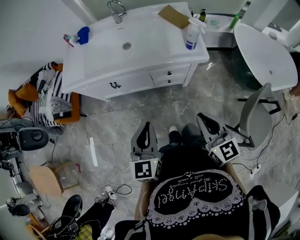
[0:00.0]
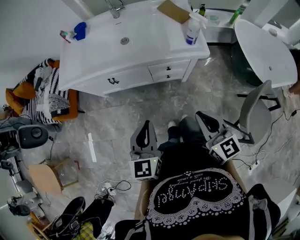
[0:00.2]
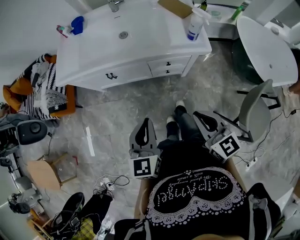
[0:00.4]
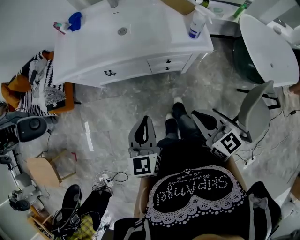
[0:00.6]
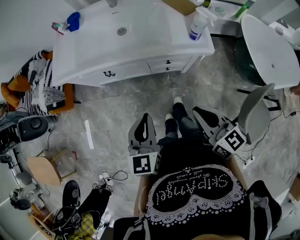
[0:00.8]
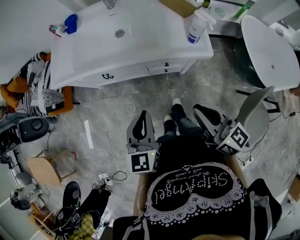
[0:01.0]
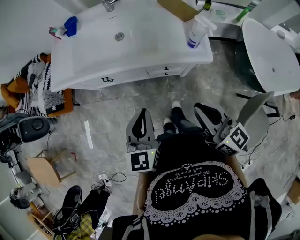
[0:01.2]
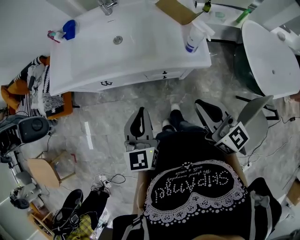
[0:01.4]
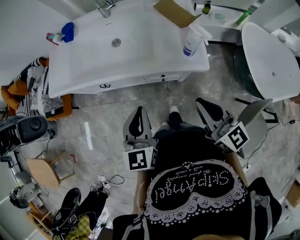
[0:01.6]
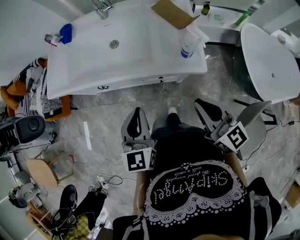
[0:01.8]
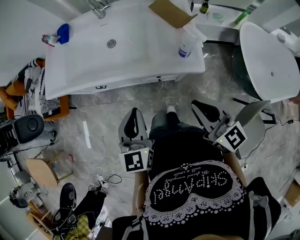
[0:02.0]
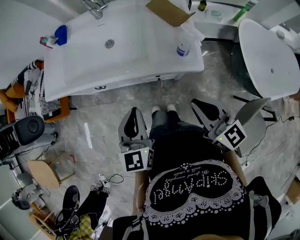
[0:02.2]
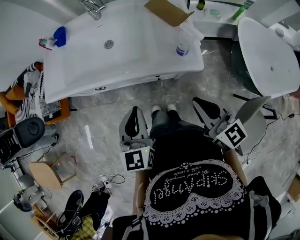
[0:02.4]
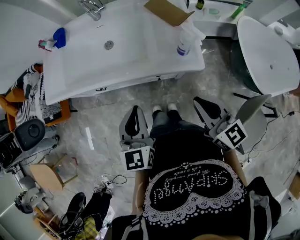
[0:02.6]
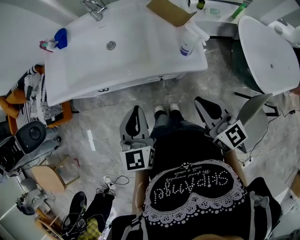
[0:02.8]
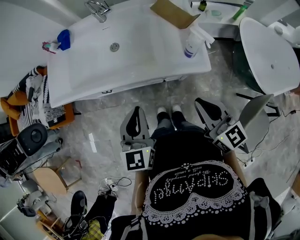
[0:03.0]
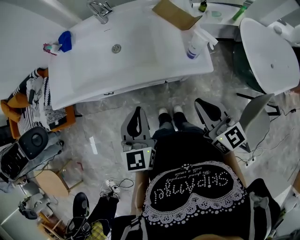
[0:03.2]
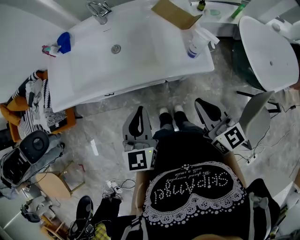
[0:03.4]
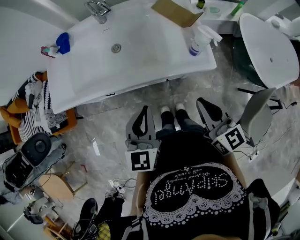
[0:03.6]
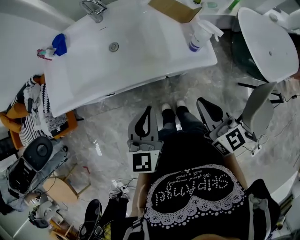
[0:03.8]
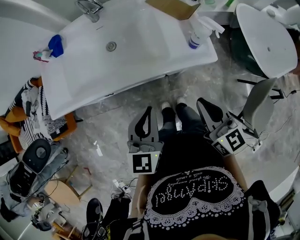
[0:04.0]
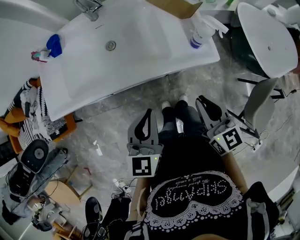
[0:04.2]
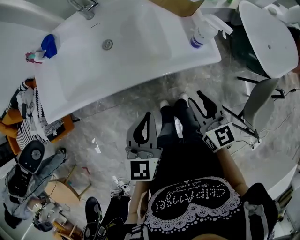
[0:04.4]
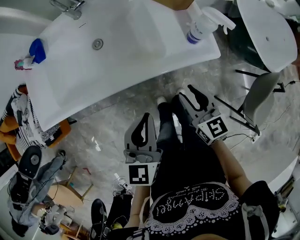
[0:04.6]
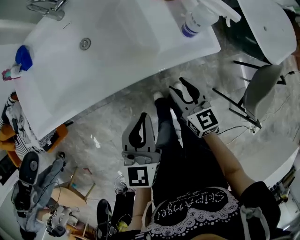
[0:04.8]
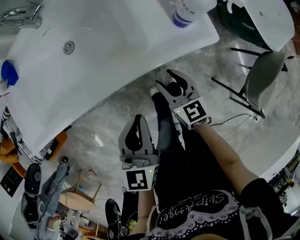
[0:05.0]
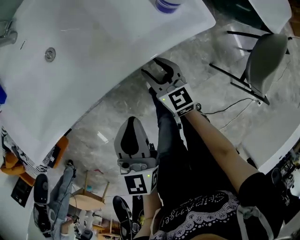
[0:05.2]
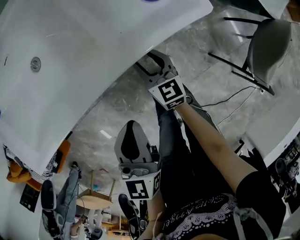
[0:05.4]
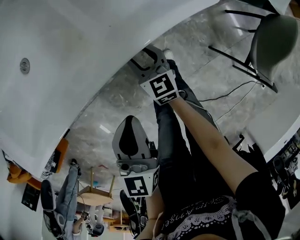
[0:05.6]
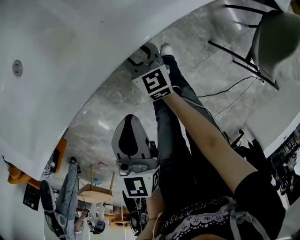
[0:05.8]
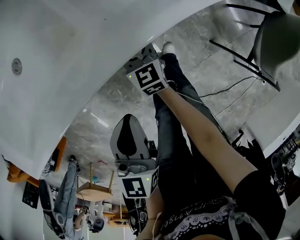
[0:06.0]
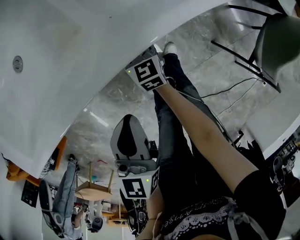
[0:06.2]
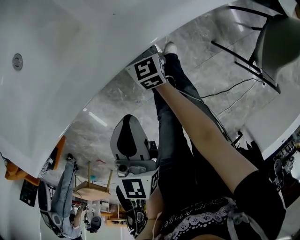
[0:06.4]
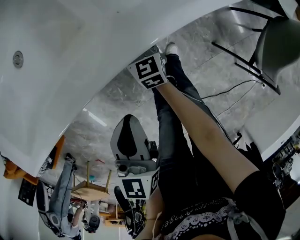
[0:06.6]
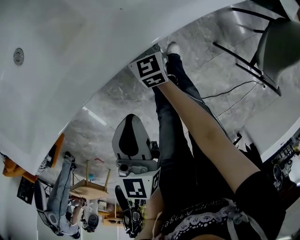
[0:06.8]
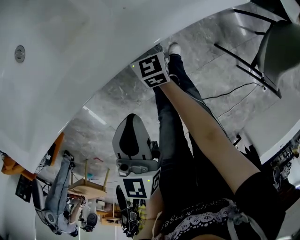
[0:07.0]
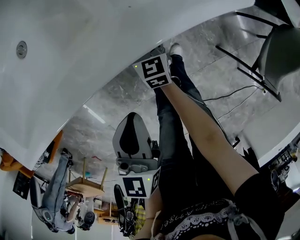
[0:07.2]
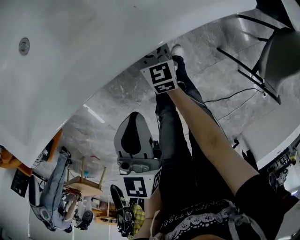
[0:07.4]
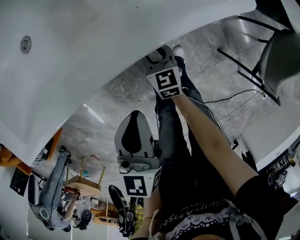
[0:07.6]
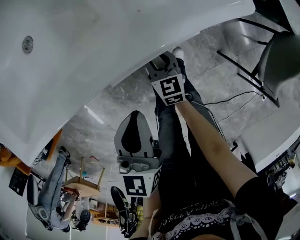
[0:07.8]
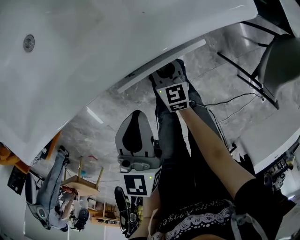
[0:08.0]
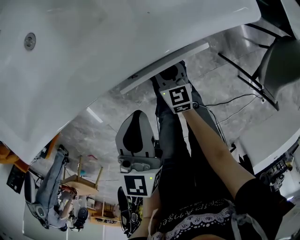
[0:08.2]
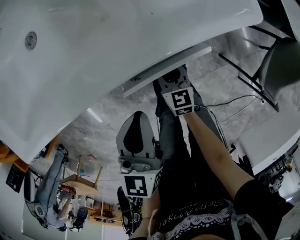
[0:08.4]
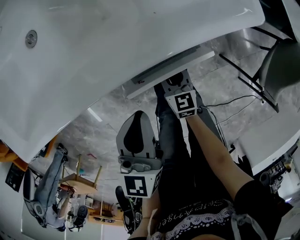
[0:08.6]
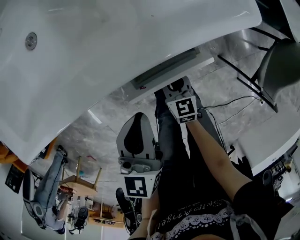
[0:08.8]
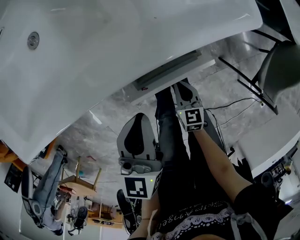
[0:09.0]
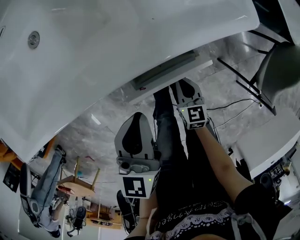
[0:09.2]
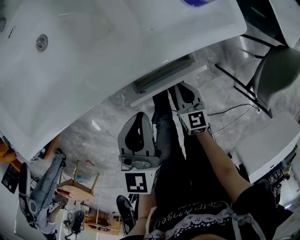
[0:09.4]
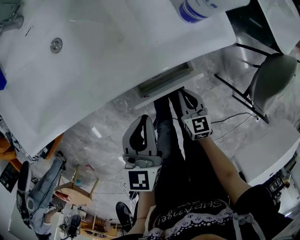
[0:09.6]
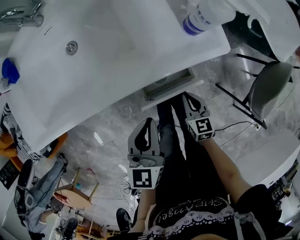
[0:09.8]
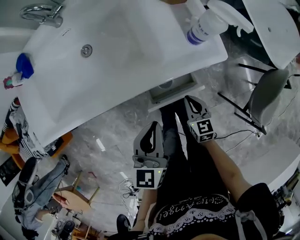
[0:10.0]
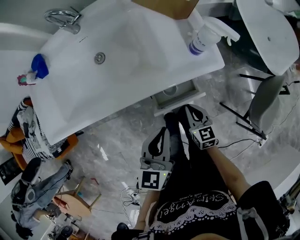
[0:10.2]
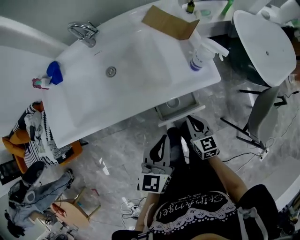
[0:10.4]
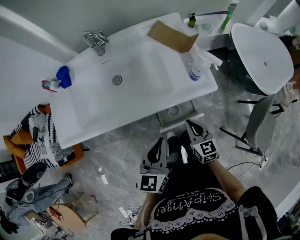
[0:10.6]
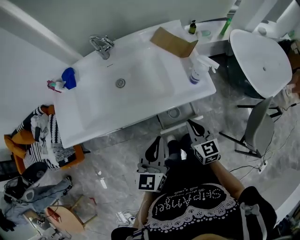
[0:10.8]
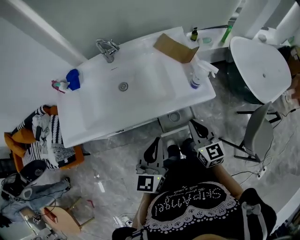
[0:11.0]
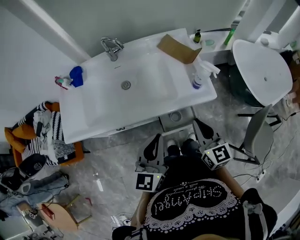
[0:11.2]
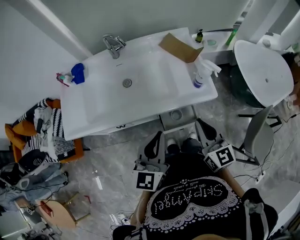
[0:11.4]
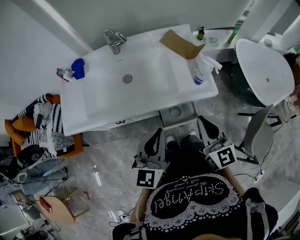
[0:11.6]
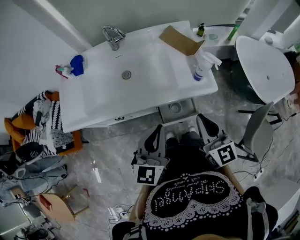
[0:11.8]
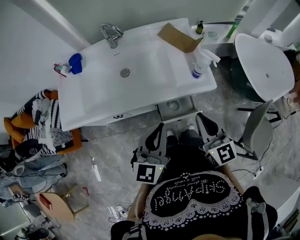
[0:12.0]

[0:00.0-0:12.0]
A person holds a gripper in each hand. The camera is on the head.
0:00.0 to 0:01.6: Both grippers move forward and to the right, approximately 15 cm.
0:01.6 to 0:03.0: The grippers move only a little.
0:03.0 to 0:04.4: The right gripper is displaced downward and to the left by some 10 cm, and opens up.
0:04.4 to 0:06.0: The left gripper travels downward by some 20 cm. The right gripper travels downward by roughly 35 cm.
0:06.0 to 0:07.6: The grippers stay close to where they were, moving slightly.
0:07.6 to 0:09.0: The right gripper moves backward and to the right, approximately 15 cm, and closes its fingers.
0:09.0 to 0:10.4: The right gripper shifts approximately 25 cm upward, while the left gripper travels upward by roughly 15 cm.
0:10.4 to 0:12.0: The right gripper is displaced upward by approximately 25 cm, and rotates about 30 degrees. Meanwhile the left gripper moves upward, roughly 10 cm.

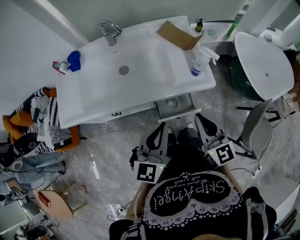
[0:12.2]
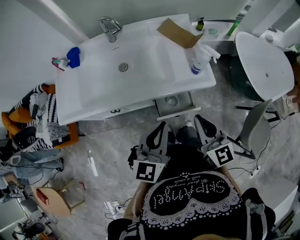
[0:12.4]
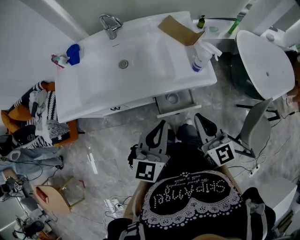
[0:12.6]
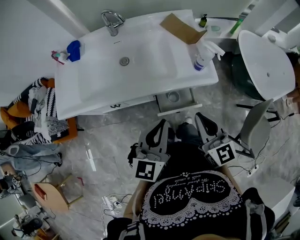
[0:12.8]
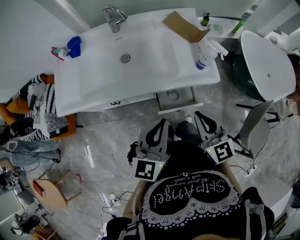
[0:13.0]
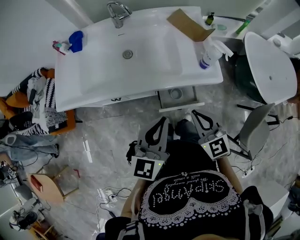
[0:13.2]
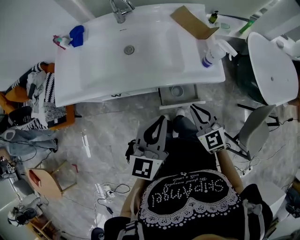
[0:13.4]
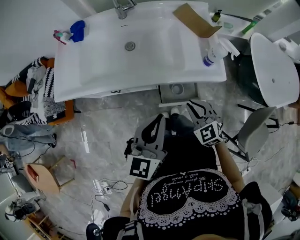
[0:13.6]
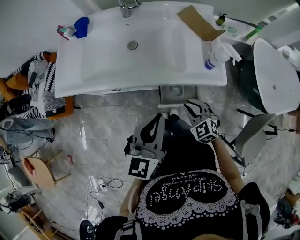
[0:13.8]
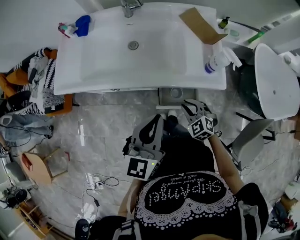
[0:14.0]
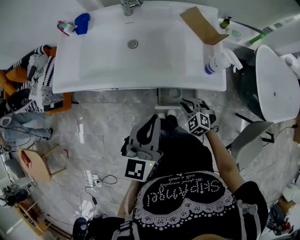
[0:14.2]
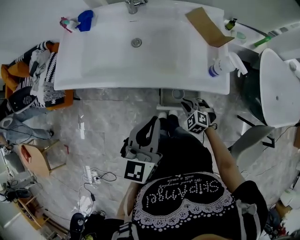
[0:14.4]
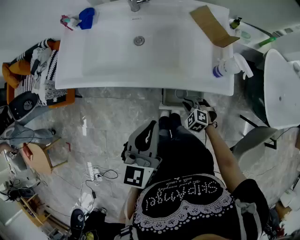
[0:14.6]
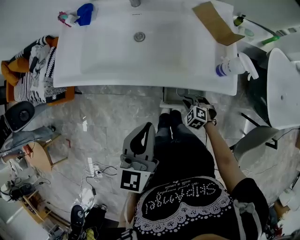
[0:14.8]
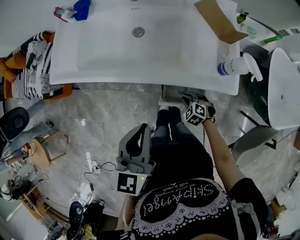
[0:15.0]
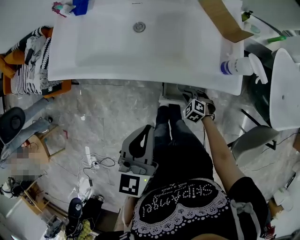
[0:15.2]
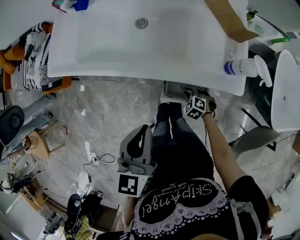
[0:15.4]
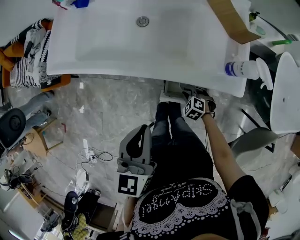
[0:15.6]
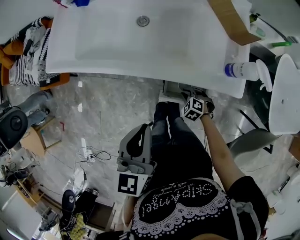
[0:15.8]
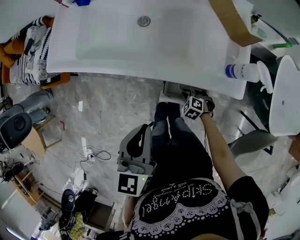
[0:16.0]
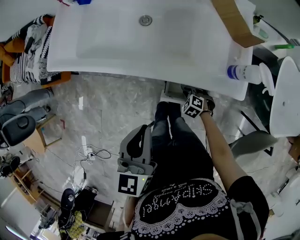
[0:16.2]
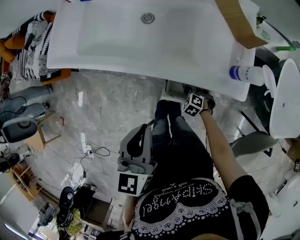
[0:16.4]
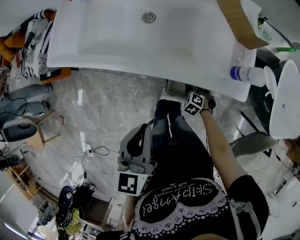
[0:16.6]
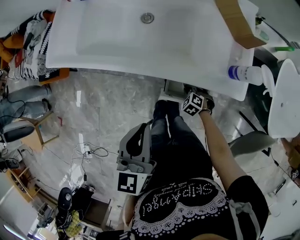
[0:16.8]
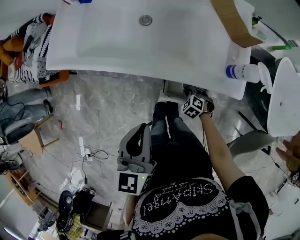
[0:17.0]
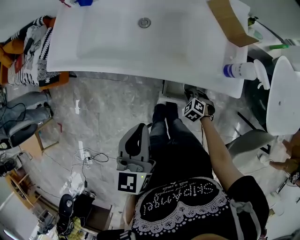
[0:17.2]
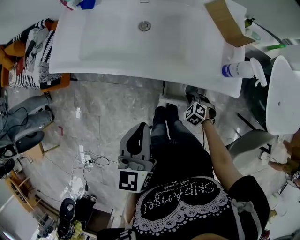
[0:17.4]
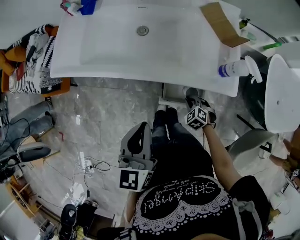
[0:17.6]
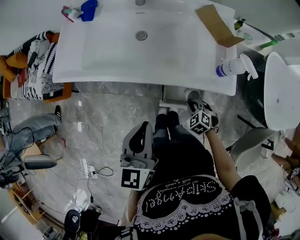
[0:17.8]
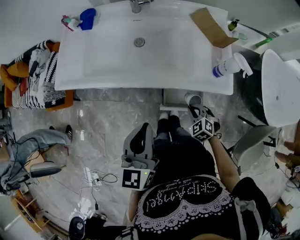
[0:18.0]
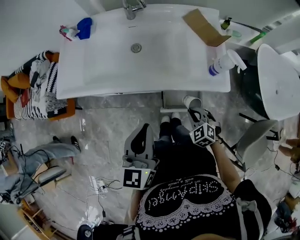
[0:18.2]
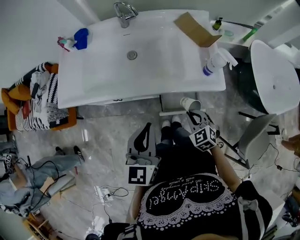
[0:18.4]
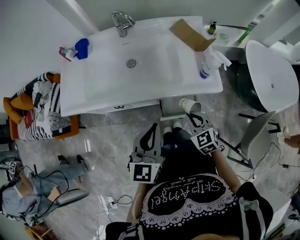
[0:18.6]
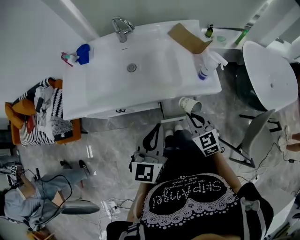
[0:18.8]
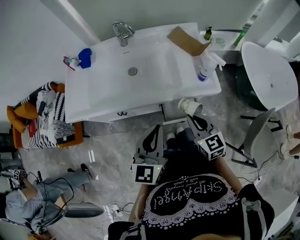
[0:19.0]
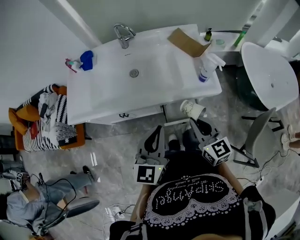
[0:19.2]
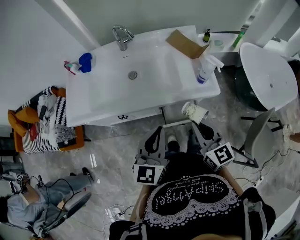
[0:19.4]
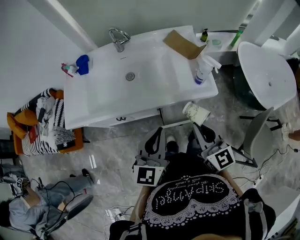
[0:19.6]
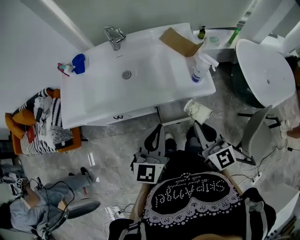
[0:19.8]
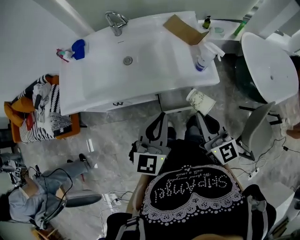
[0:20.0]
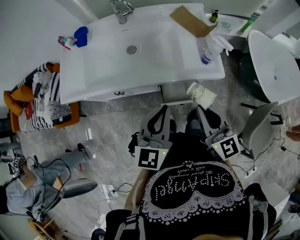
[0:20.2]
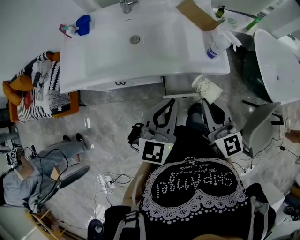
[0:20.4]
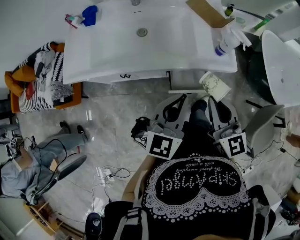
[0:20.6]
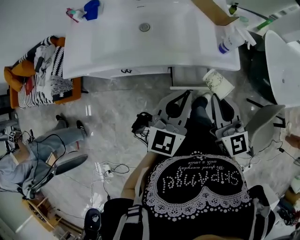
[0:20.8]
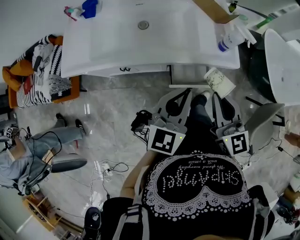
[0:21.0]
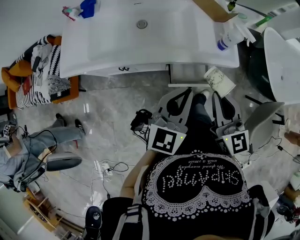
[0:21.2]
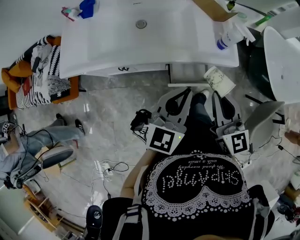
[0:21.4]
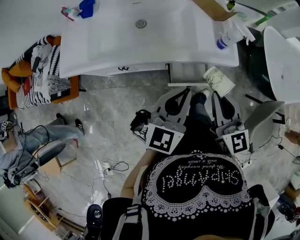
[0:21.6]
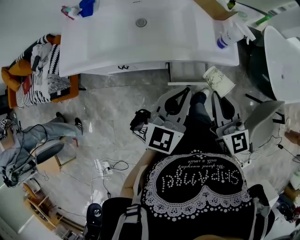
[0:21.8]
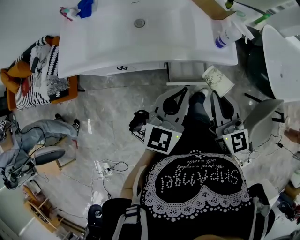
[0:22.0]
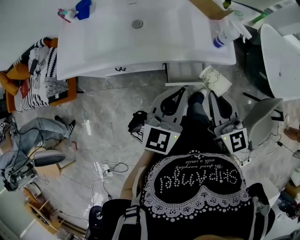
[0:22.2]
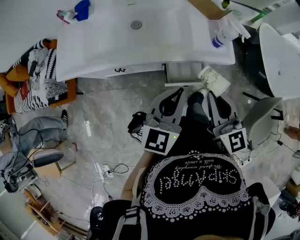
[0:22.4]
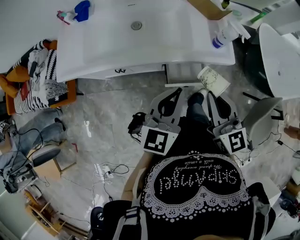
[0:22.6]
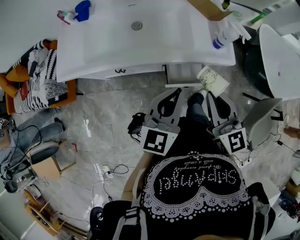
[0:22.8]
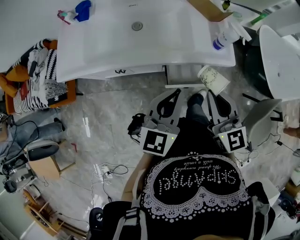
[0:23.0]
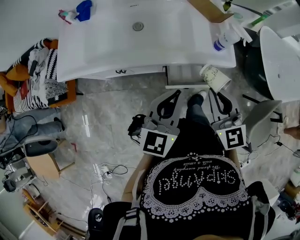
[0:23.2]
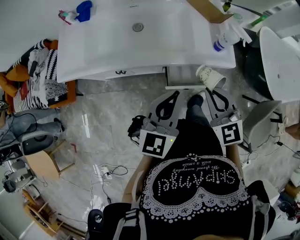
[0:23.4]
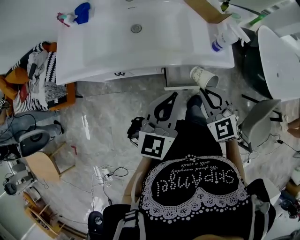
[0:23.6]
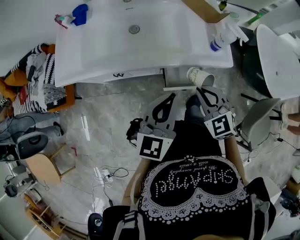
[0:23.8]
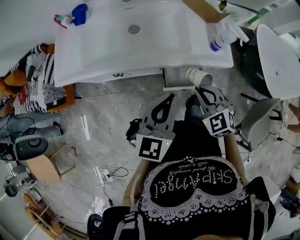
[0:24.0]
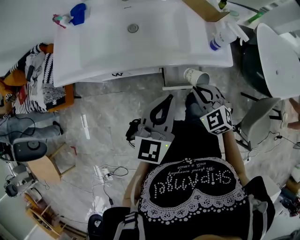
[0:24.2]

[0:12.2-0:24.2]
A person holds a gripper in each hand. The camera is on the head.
0:12.2 to 0:13.8: The right gripper is displaced downward by roughly 20 cm, and angles its fingers downward, by about 30 degrees.
0:13.8 to 0:15.2: The right gripper heads downward, covering roughly 20 cm, and changes its angle by roughly 30 degrees.
0:15.2 to 0:16.6: The grippers make only small movements.
0:16.6 to 0:18.2: The right gripper shifts about 20 cm upward, and rotates some 30 degrees.
0:18.2 to 0:19.8: The left gripper shifts approximately 5 cm to the right, while the right gripper heads upward, covering roughly 25 cm, and tilts its fingers about 40 degrees upward.
0:19.8 to 0:22.6: There are only small adjustments of the grippers.
0:22.6 to 0:24.2: The right gripper goes approximately 15 cm downward, and angles its fingers downward, by roughly 30 degrees.
